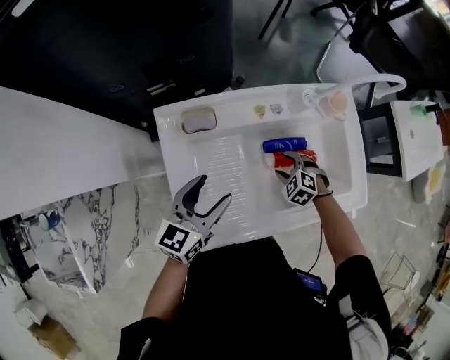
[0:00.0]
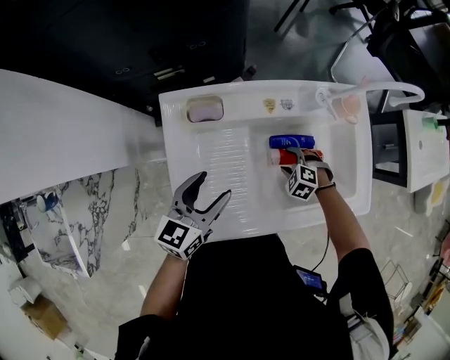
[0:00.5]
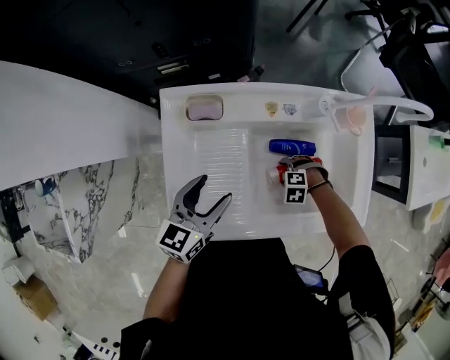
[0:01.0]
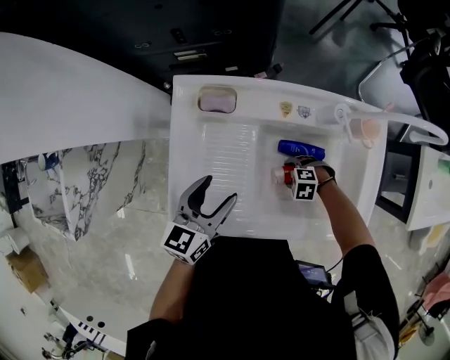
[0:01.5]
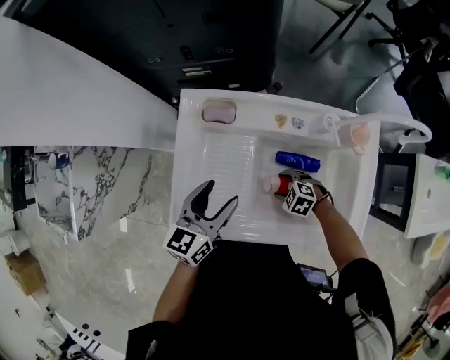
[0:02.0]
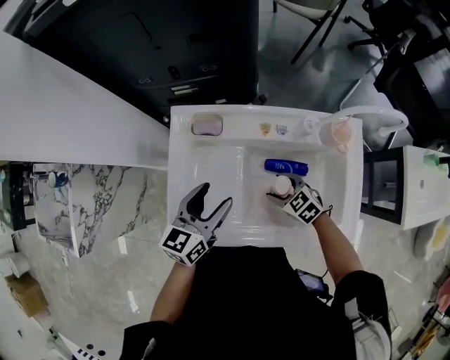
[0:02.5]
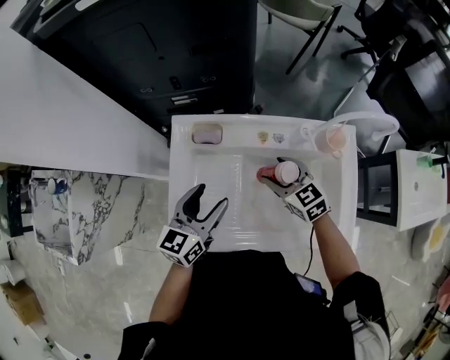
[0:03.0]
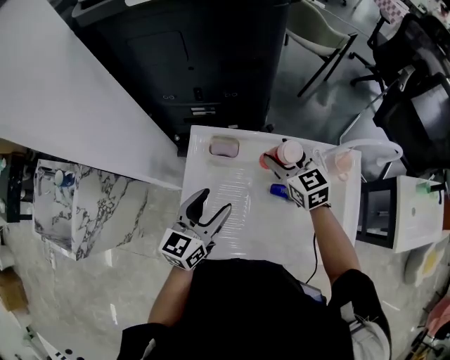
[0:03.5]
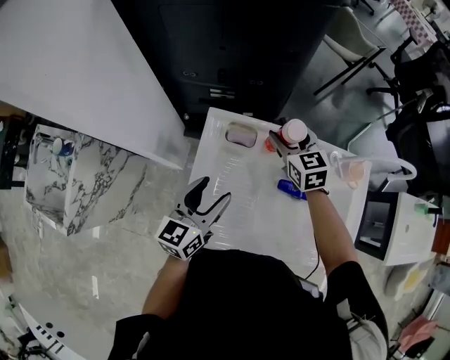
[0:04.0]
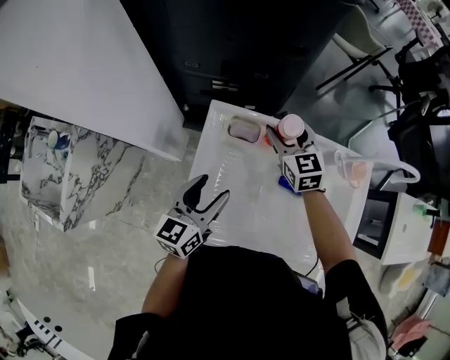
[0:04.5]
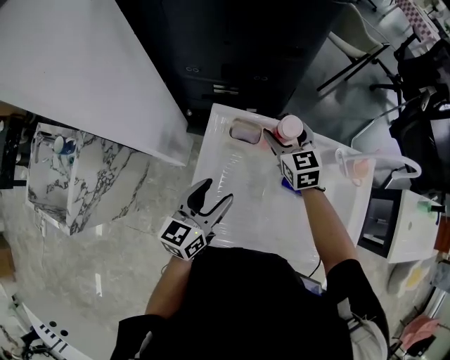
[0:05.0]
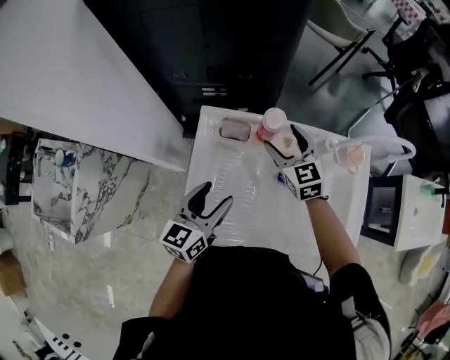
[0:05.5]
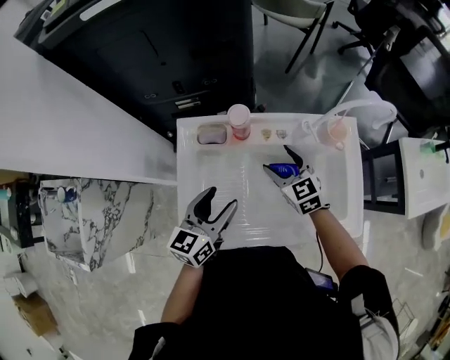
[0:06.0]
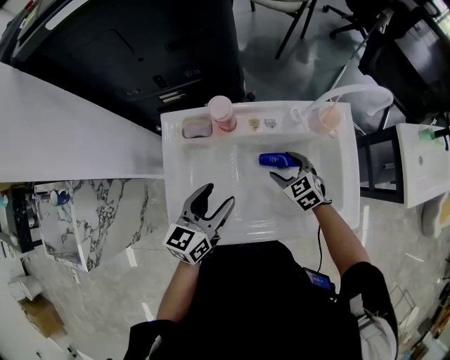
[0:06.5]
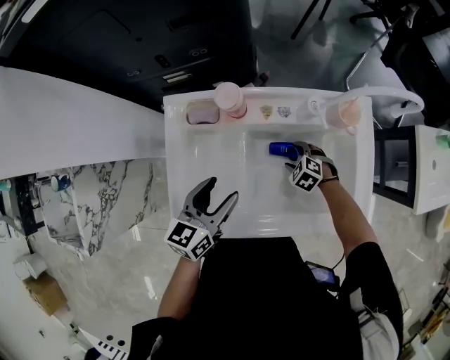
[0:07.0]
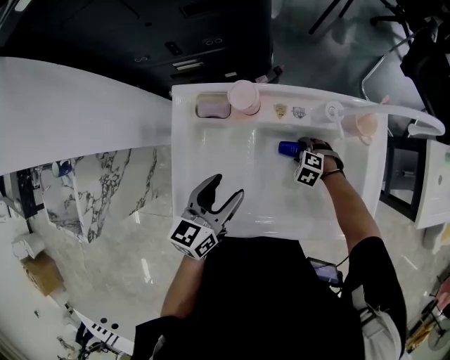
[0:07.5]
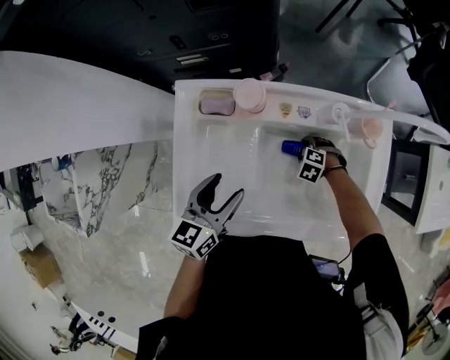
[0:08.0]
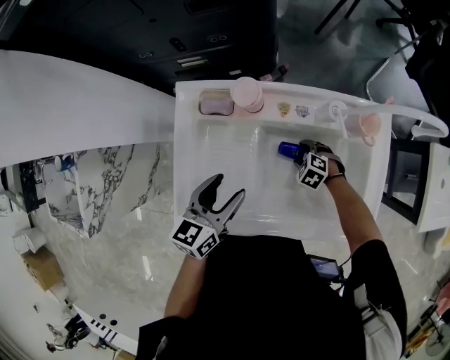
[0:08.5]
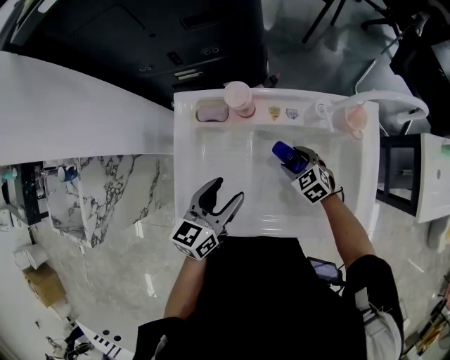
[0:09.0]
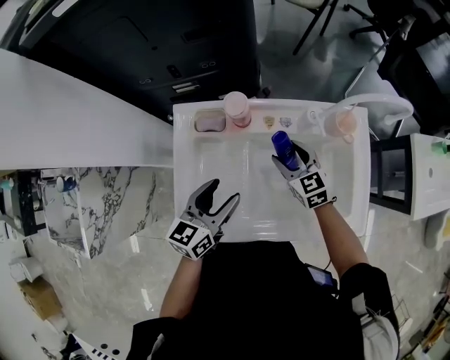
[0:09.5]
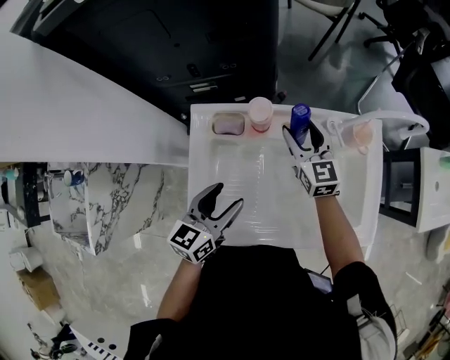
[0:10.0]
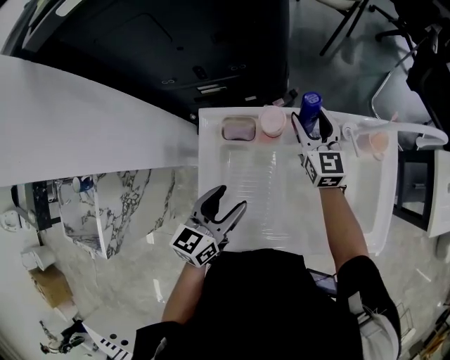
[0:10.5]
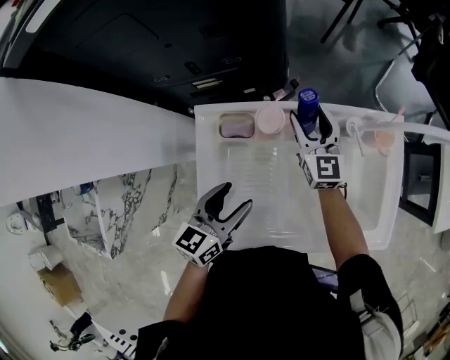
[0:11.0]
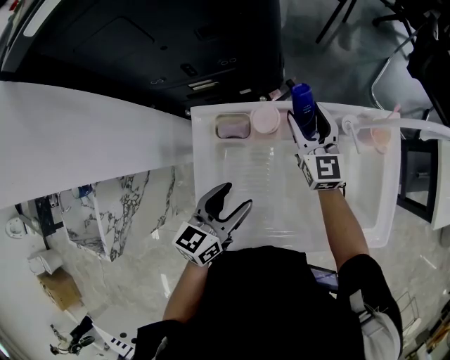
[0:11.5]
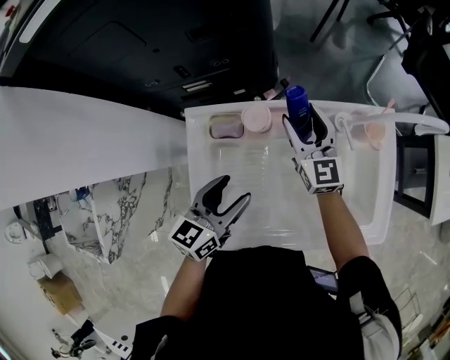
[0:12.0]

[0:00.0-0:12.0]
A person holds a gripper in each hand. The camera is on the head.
0:00.0 to 0:02.0: The right gripper turns by roughly 30 degrees; the left gripper swivels about 20 degrees.
0:02.0 to 0:04.0: The right gripper goes about 35 cm forward and upward, and points its fingers roughly 40 degrees further upward; the left gripper is displaced to the left and forward by some 10 cm.
0:04.0 to 0:06.0: The right gripper goes about 15 cm backward and to the right, while the left gripper goes some 5 cm to the right.
0:06.0 to 0:08.0: The right gripper is displaced downward by approximately 25 cm, and points its fingers approximately 50 degrees further downward, while the left gripper heads downward, covering some 5 cm.
0:08.0 to 0:10.0: The right gripper shifts some 30 cm upward, and angles its fingers upward, by roughly 70 degrees.

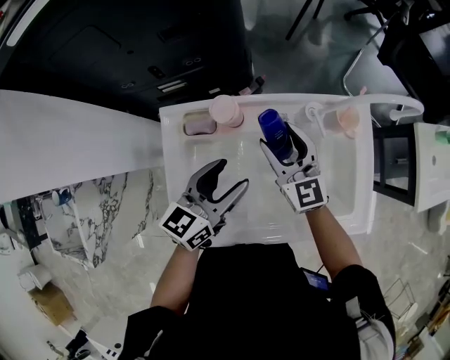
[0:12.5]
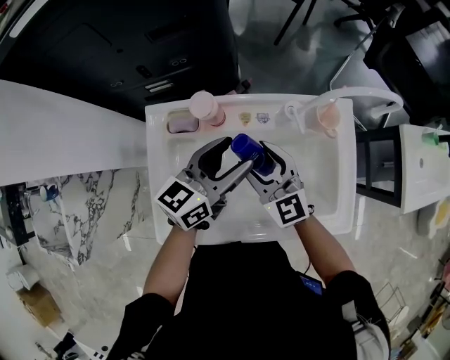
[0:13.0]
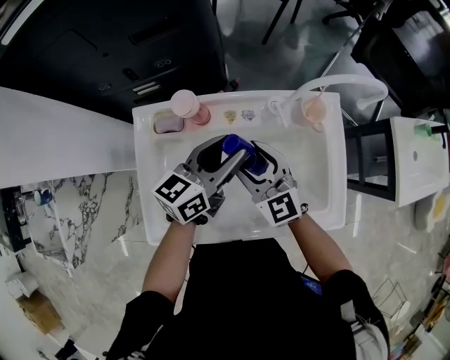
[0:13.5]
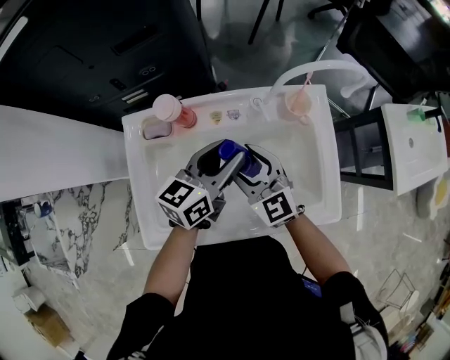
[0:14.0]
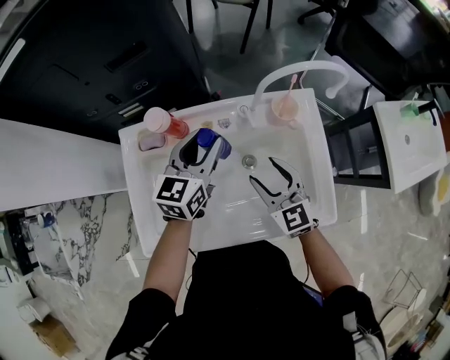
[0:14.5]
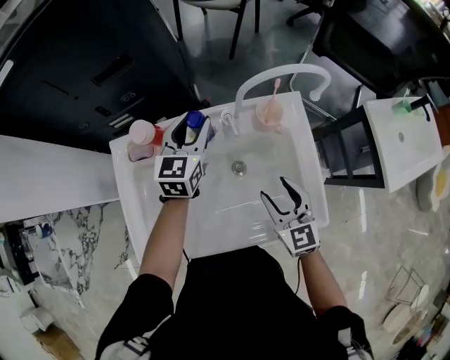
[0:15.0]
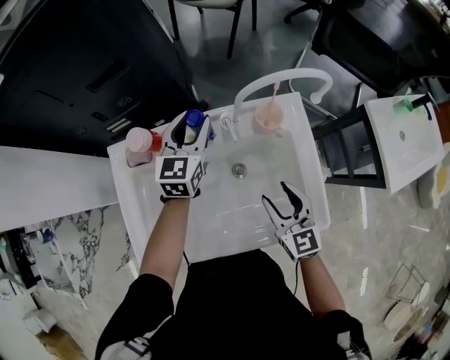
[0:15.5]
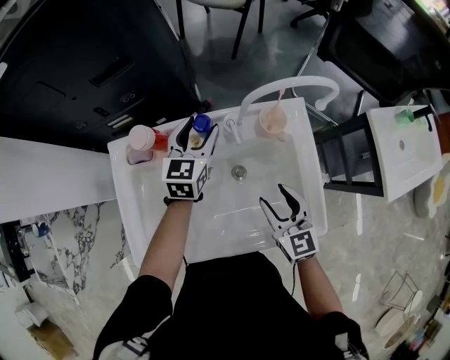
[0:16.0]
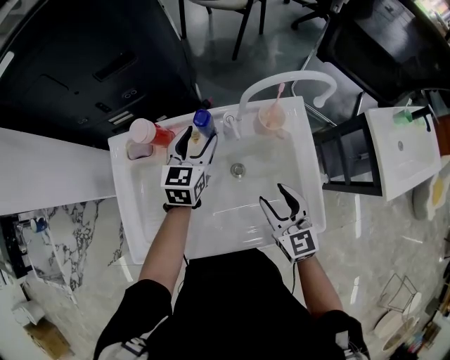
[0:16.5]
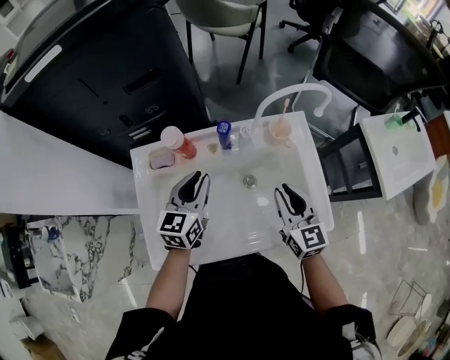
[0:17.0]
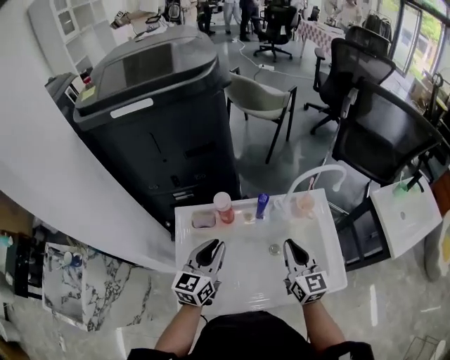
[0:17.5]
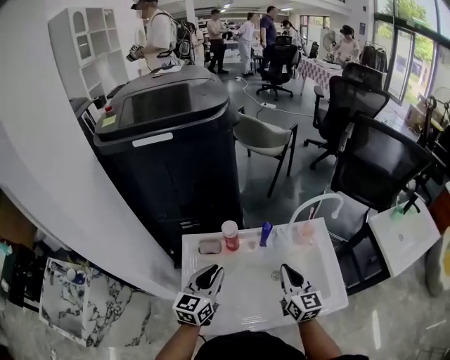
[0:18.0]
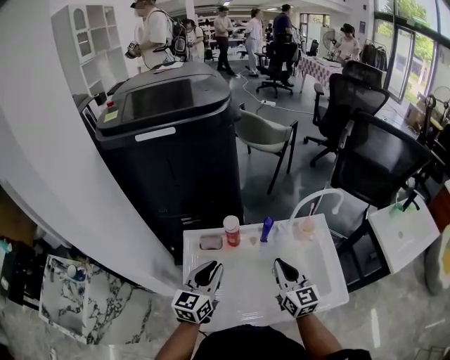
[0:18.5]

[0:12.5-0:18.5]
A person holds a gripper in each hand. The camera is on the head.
0:12.5 to 0:14.5: The right gripper heads to the right and backward, covering about 15 cm, while the left gripper goes about 15 cm to the right and forward.
0:14.5 to 0:16.5: The left gripper heads downward, covering approximately 5 cm, while the right gripper moves to the right, roughly 5 cm.
0:16.5 to 0:18.5: The right gripper heads to the left and upward, covering about 15 cm, and closes up, while the left gripper goes approximately 25 cm backward, to the left and upward, and closes.

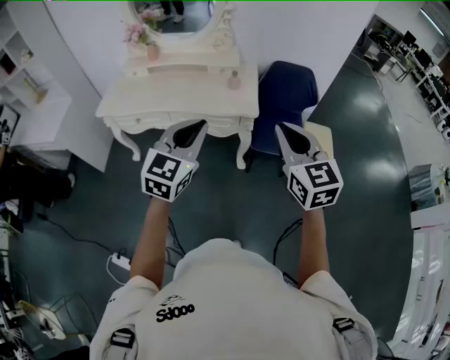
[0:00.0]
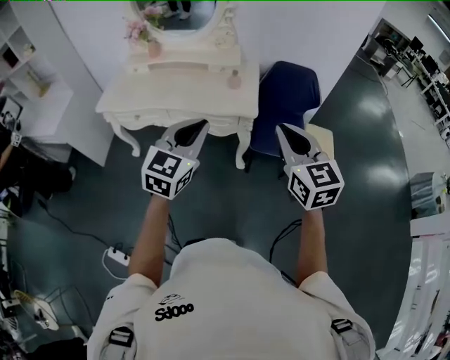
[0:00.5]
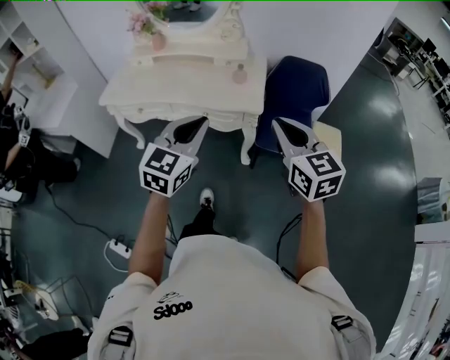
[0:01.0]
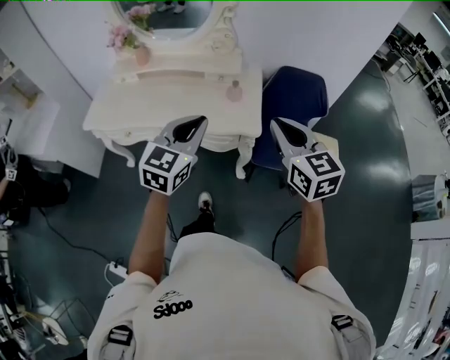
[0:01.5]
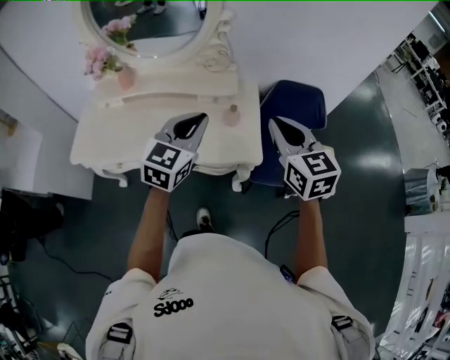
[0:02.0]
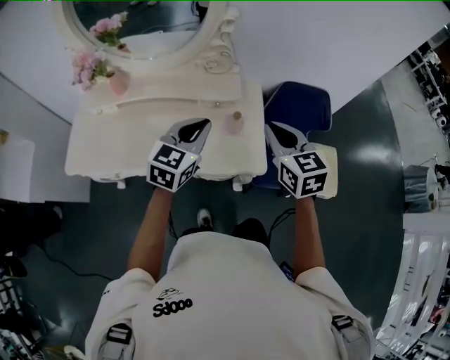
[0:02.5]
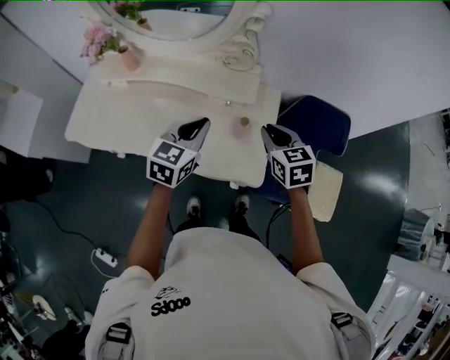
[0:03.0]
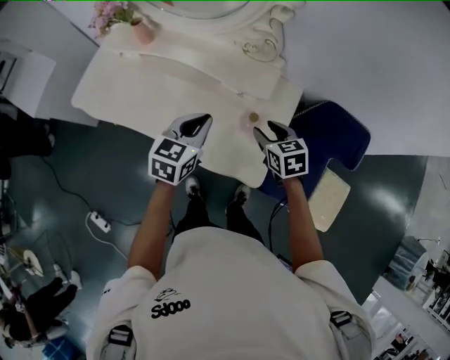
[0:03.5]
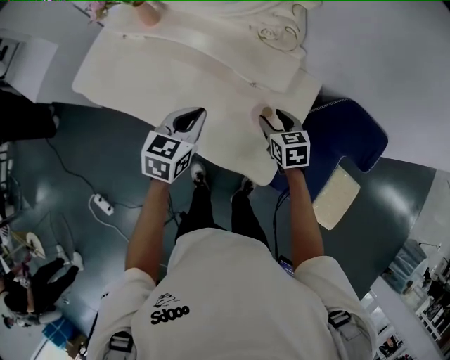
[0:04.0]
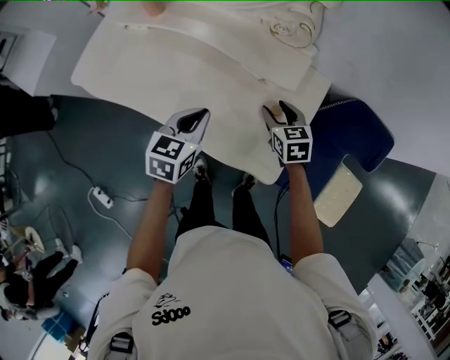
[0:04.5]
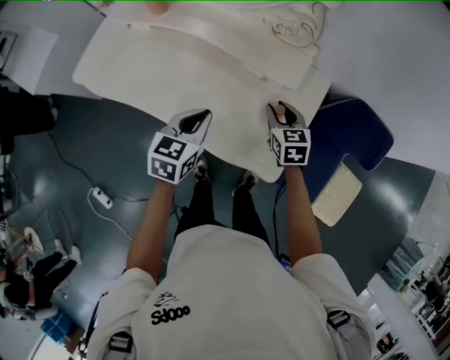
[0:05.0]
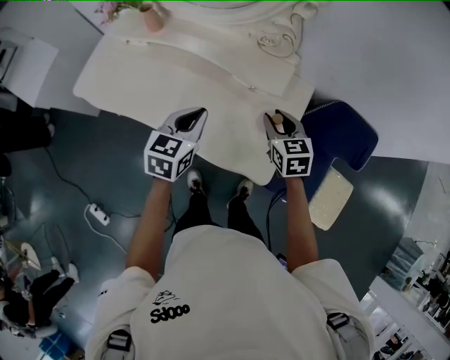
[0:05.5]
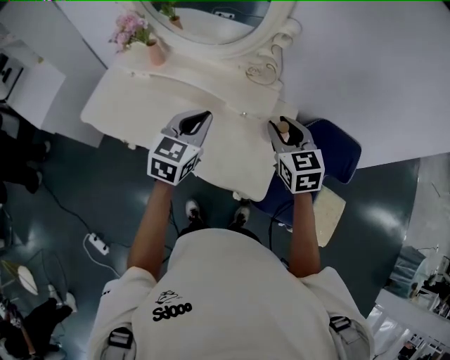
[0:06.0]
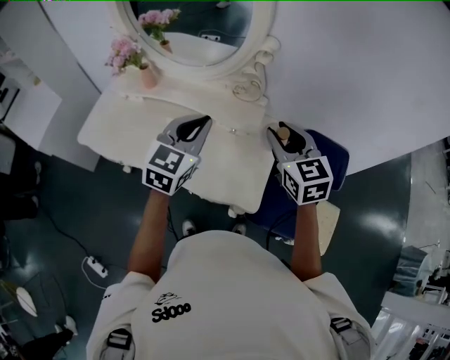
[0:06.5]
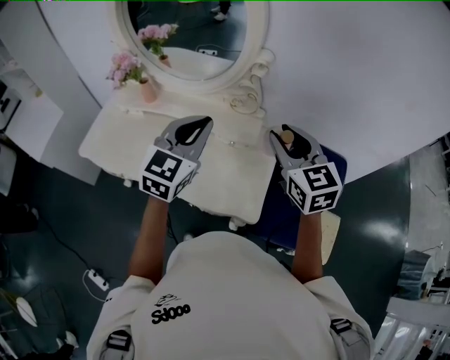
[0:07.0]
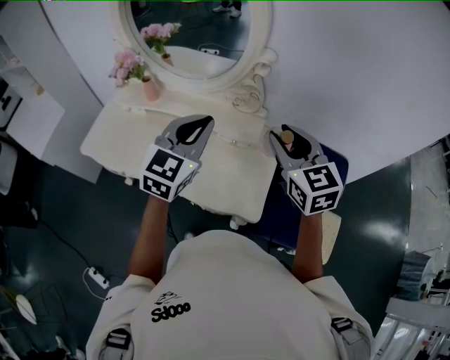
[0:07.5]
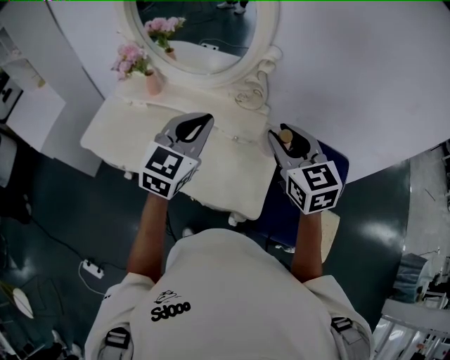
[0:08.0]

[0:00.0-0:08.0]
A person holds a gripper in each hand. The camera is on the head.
0:00.0 to 0:02.0: Both grippers move forward, approximately 35 cm.
0:02.0 to 0:04.0: The right gripper heads downward, covering roughly 30 cm, changes its angle by roughly 40 degrees, and opens its fingers. The left gripper shifts some 20 cm downward, and changes its angle by approximately 40 degrees.
0:04.0 to 0:06.0: The left gripper travels upward by approximately 10 cm. Meanwhile the right gripper goes roughly 20 cm upward, rotates approximately 20 degrees, and closes up.
0:06.0 to 0:08.0: Both grippers travel together upward, about 10 cm.

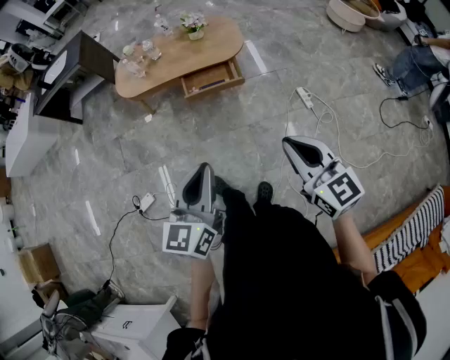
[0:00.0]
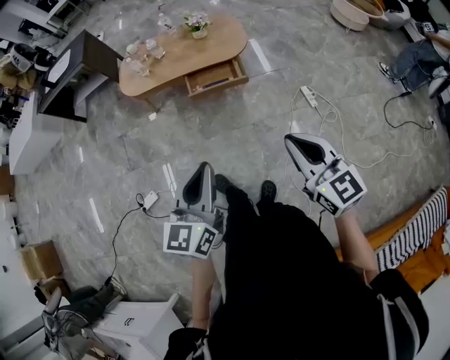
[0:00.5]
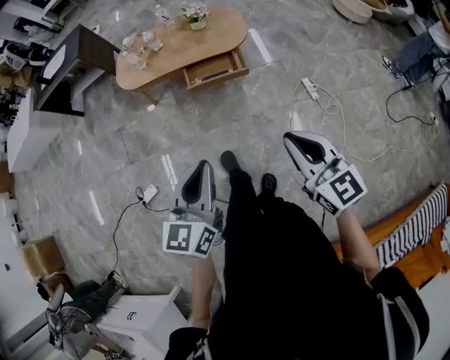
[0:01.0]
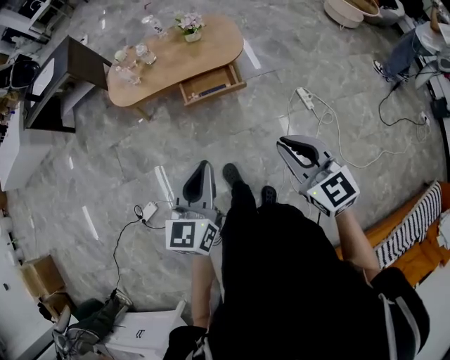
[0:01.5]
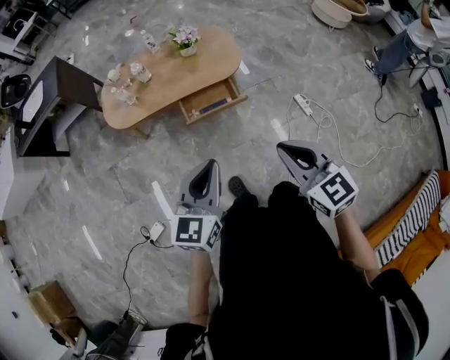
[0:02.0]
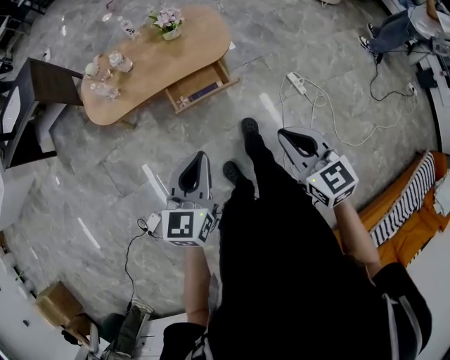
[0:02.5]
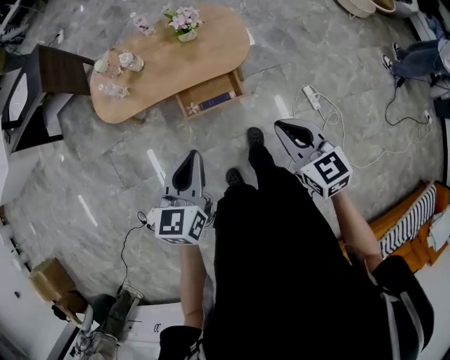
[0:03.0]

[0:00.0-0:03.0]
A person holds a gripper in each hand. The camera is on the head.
0:00.0 to 0:01.5: The grippers both shift forward by about 10 cm.
0:01.5 to 0:03.0: The grippers both shift forward by roughly 30 cm.
